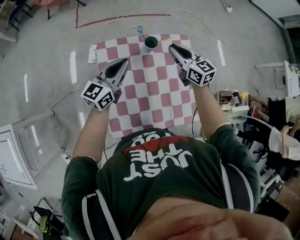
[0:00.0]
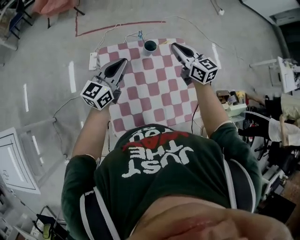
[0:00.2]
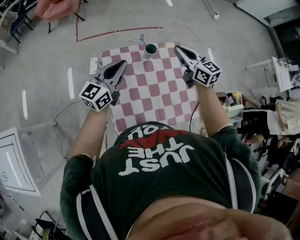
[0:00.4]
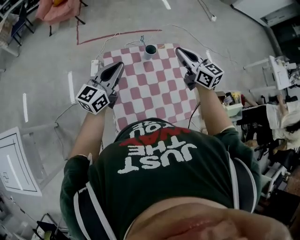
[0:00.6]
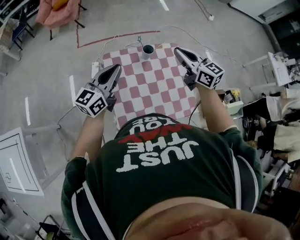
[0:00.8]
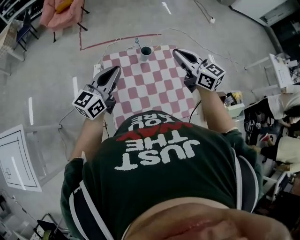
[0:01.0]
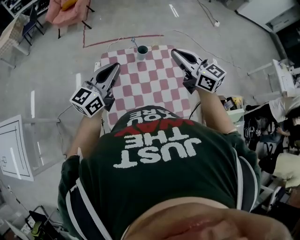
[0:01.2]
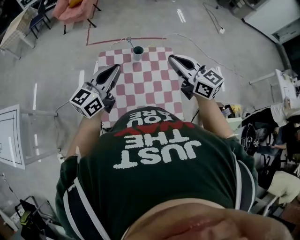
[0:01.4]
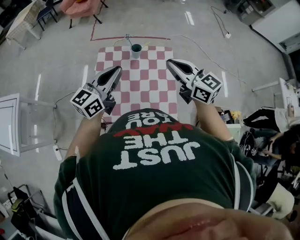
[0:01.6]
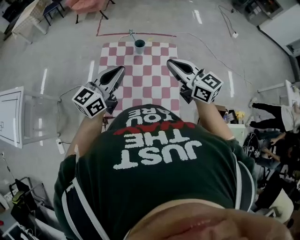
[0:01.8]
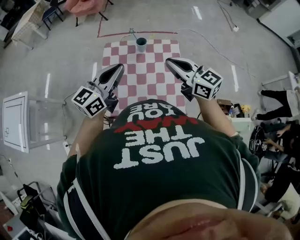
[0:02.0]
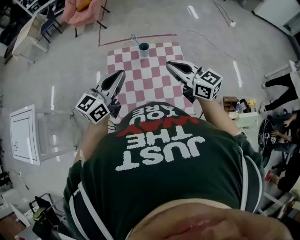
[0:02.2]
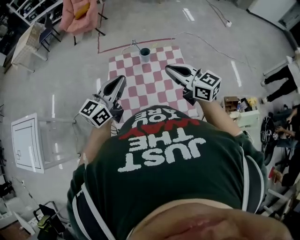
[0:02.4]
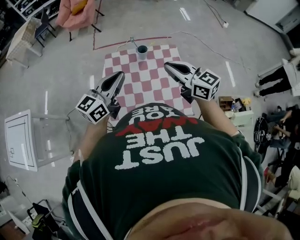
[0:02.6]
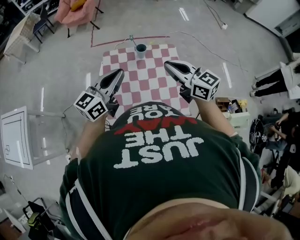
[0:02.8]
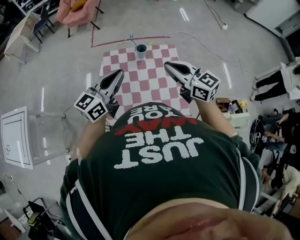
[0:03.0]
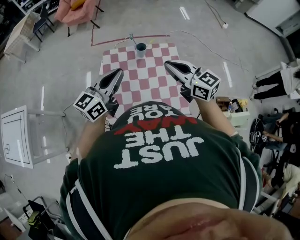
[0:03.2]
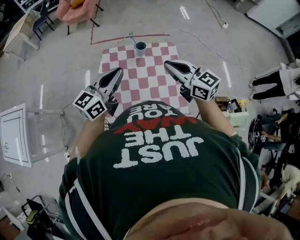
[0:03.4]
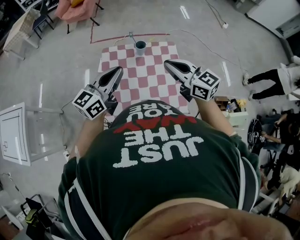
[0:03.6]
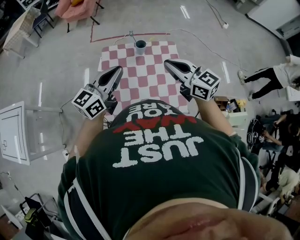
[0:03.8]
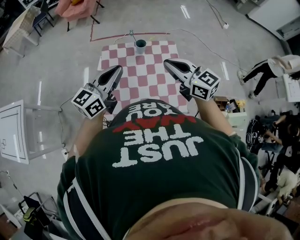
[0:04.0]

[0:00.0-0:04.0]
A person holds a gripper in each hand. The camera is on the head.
0:00.0 to 0:01.4: Both grippers move upward and backward, approximately 30 cm.
0:01.4 to 0:02.6: The right gripper shifts by about 5 cm.
0:02.6 to 0:04.0: Both grippers stay about where they are.

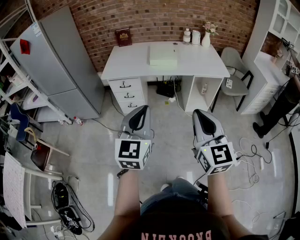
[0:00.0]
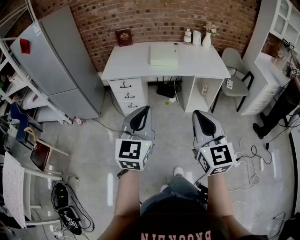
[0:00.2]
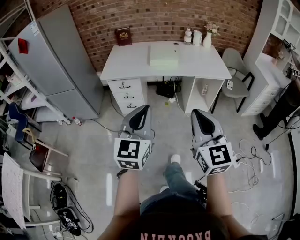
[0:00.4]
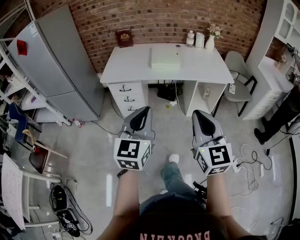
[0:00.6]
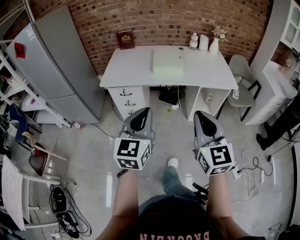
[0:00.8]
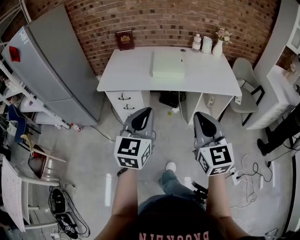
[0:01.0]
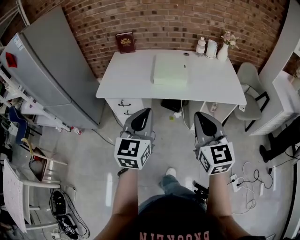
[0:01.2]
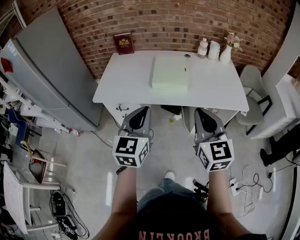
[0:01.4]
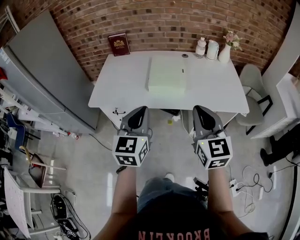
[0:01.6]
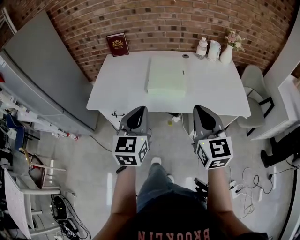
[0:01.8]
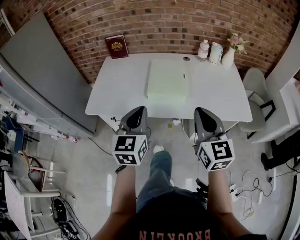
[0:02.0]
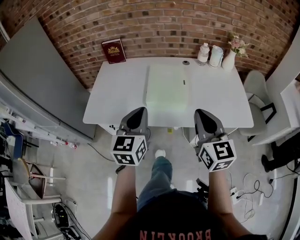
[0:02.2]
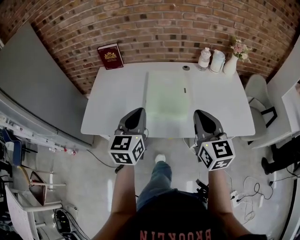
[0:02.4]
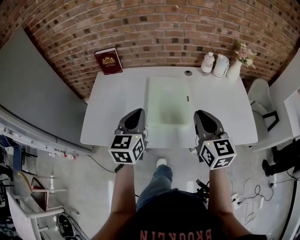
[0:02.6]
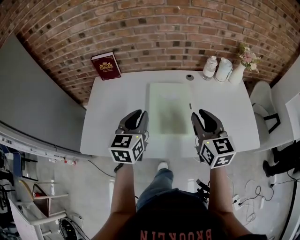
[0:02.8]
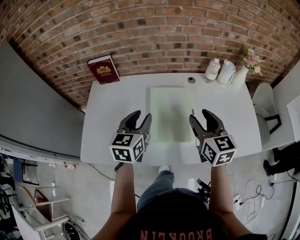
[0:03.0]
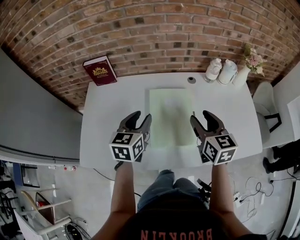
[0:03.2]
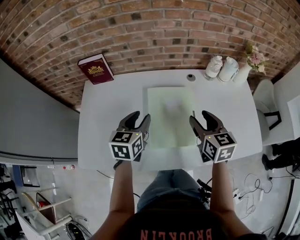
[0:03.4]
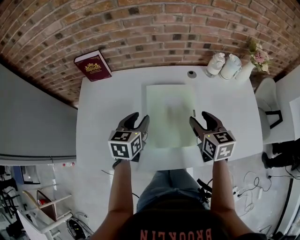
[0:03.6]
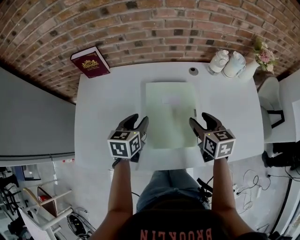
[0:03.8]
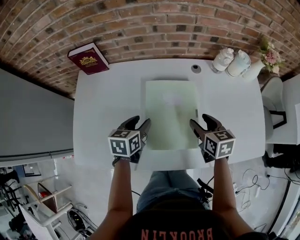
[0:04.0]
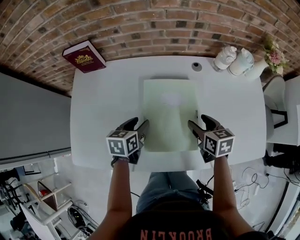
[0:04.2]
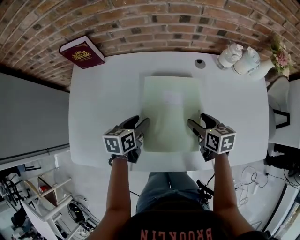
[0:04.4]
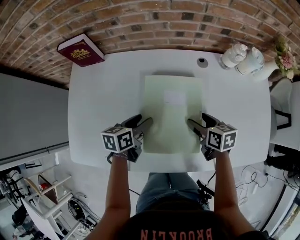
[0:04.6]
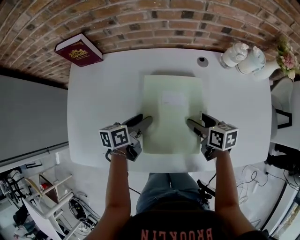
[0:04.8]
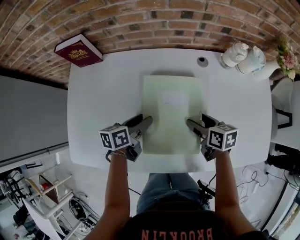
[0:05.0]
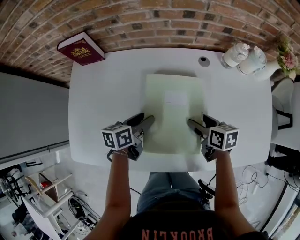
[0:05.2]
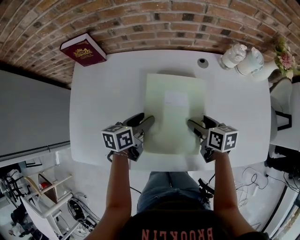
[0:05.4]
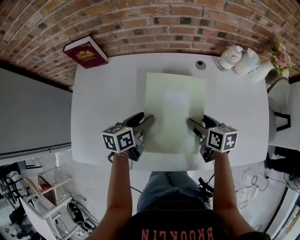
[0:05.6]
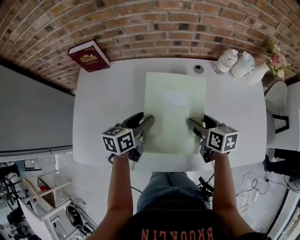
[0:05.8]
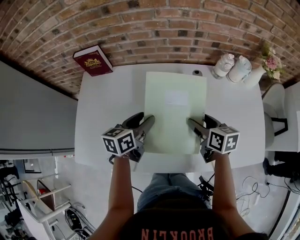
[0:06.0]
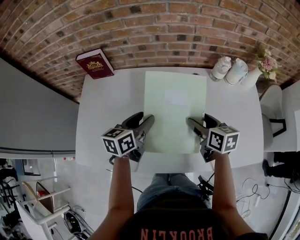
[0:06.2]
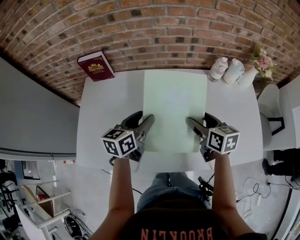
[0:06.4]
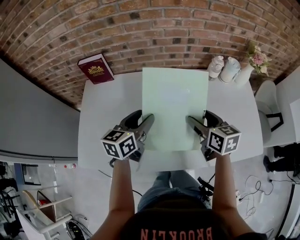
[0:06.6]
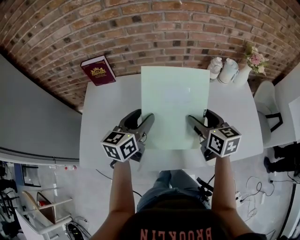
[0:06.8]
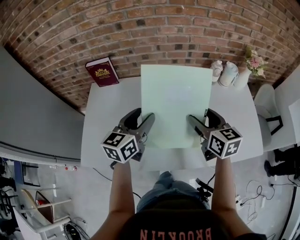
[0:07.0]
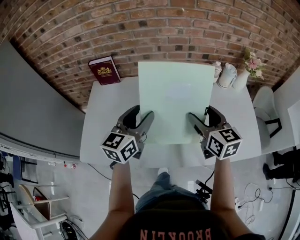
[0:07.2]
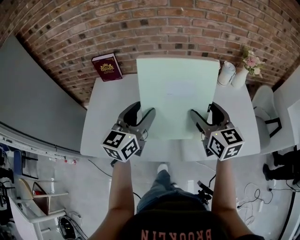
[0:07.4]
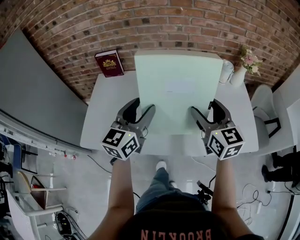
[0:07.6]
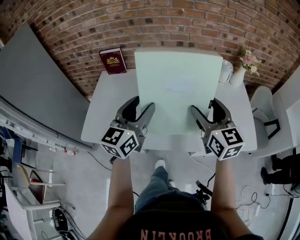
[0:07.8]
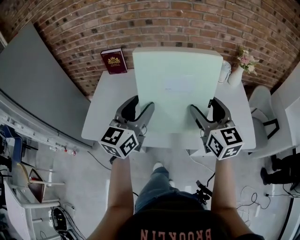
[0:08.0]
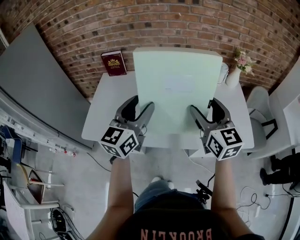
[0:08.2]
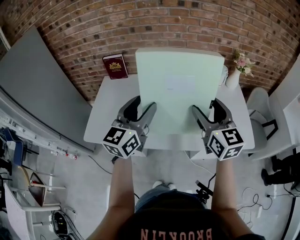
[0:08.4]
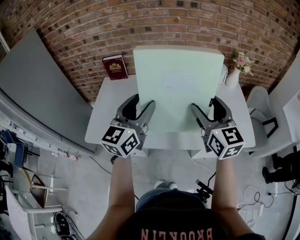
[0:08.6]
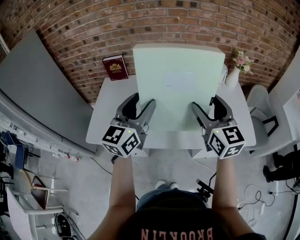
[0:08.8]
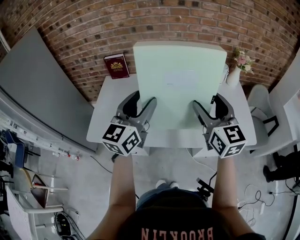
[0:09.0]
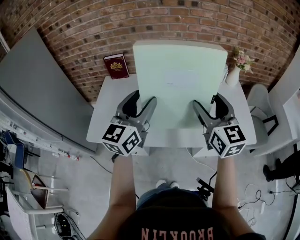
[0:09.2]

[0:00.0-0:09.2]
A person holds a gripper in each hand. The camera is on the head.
0:00.0 to 0:01.6: Both grippers move forward, about 40 cm.
0:01.6 to 0:03.0: Both grippers travel together forward, approximately 35 cm. The right gripper opens its fingers; the left gripper opens up.
0:03.0 to 0:04.6: The two grippers go approximately 20 cm downward. The right gripper turns by roughly 40 degrees, and opens; the left gripper swivels some 40 degrees.
0:04.6 to 0:06.2: Both grippers move upward, about 10 cm.
0:06.2 to 0:07.6: Both grippers move upward and backward, approximately 20 cm. The right gripper rotates about 40 degrees, while the left gripper swivels roughly 40 degrees.
0:07.6 to 0:09.2: The left gripper shifts some 10 cm upward and backward. The right gripper shifts about 10 cm backward and upward.

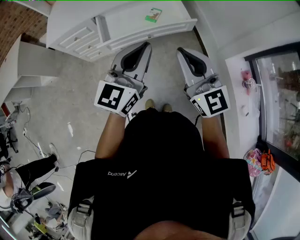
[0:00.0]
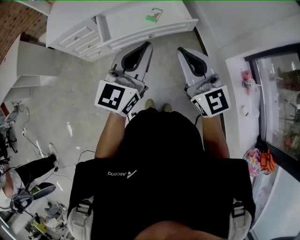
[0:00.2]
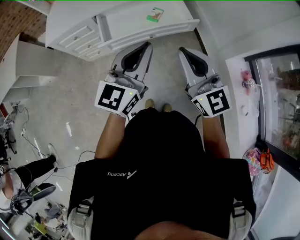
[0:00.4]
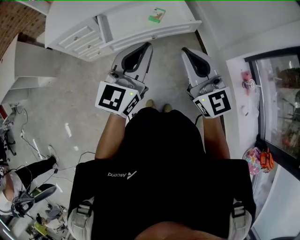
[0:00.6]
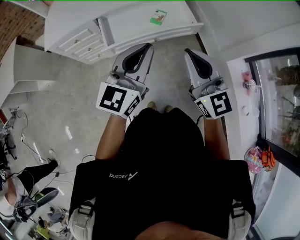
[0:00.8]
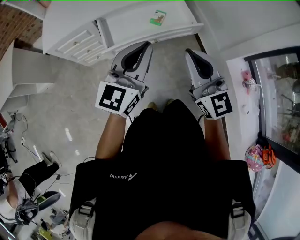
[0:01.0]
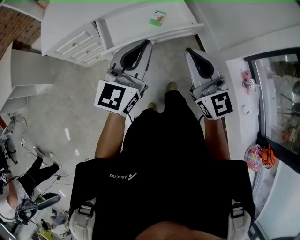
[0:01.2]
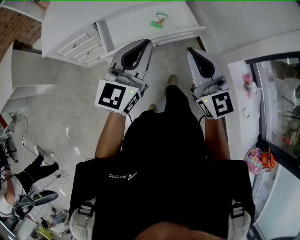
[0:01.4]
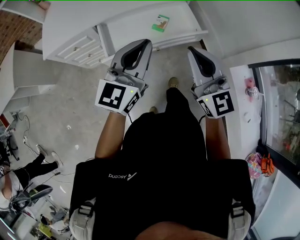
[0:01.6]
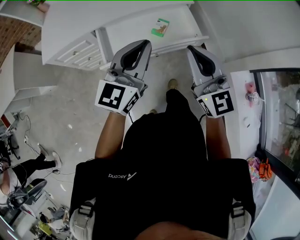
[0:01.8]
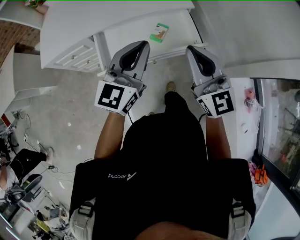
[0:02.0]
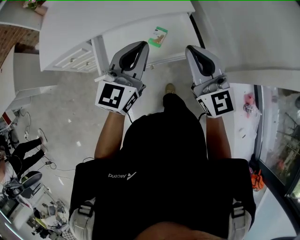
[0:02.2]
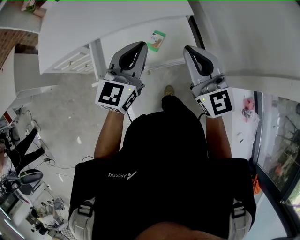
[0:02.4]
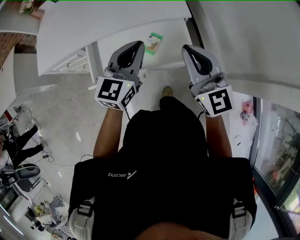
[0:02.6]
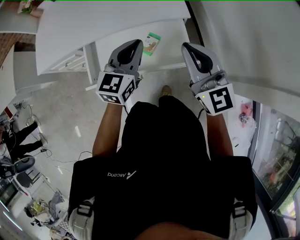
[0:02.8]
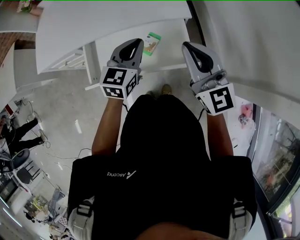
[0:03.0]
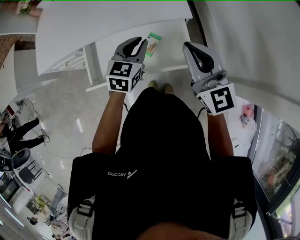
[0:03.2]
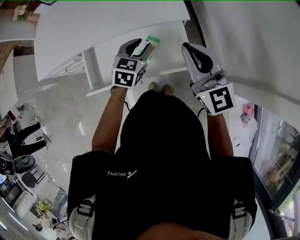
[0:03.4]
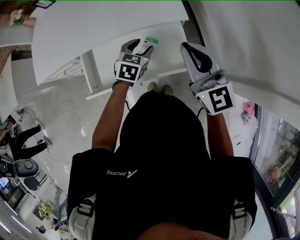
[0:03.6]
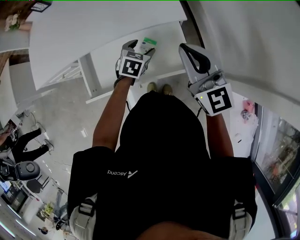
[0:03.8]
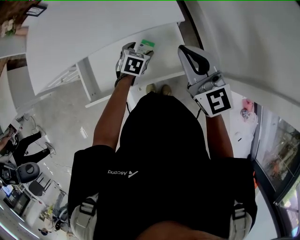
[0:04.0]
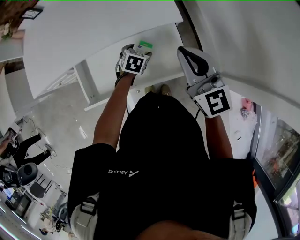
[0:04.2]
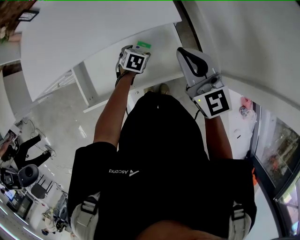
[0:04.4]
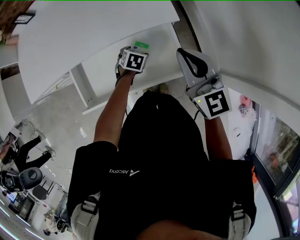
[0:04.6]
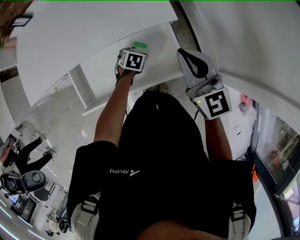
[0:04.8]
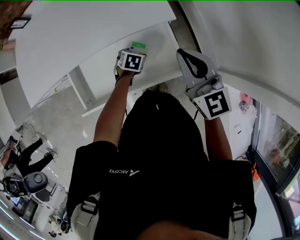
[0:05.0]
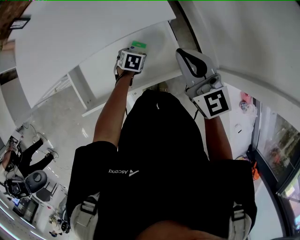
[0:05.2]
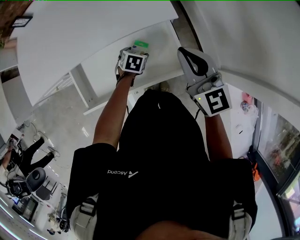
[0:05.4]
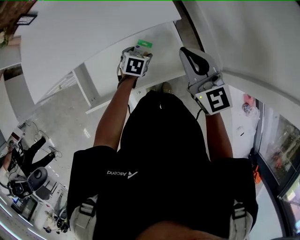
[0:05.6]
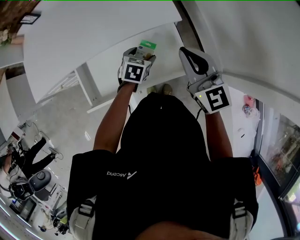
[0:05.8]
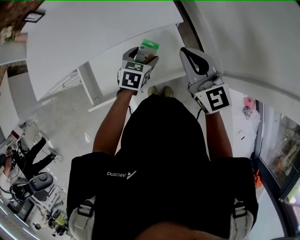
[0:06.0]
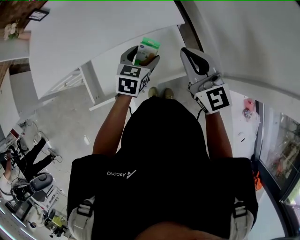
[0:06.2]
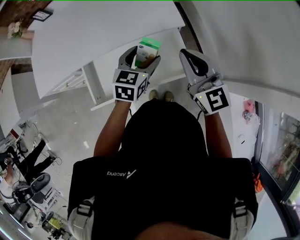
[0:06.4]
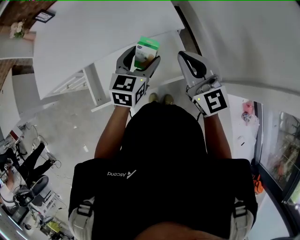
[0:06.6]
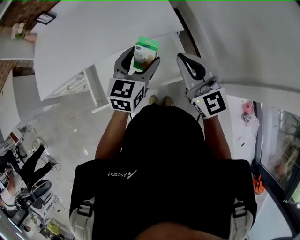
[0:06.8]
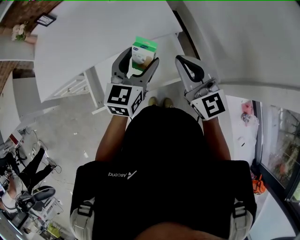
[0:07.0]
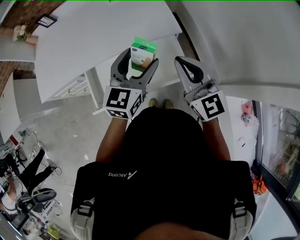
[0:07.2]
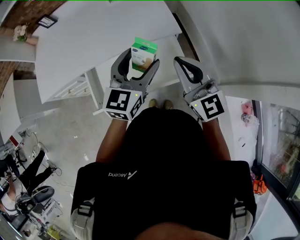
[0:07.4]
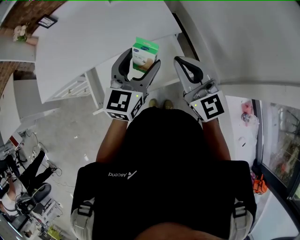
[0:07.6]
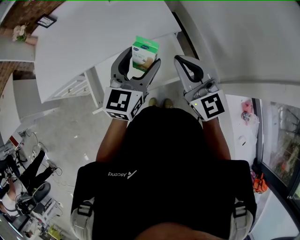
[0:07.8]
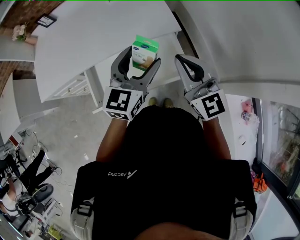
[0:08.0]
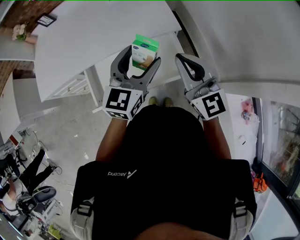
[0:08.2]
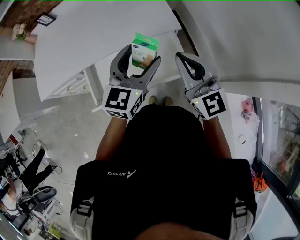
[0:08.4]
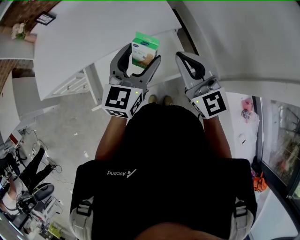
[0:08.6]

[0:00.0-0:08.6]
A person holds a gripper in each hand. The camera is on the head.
0:00.0 to 0:01.4: Both grippers move forward and to the left, some 10 cm.
0:01.4 to 0:02.8: The left gripper travels forward by some 30 cm, and changes its angle by roughly 20 degrees. Meanwhile the right gripper goes about 30 cm forward and to the right.
0:02.8 to 0:04.4: The right gripper heads forward and downward, covering approximately 10 cm; the left gripper is displaced downward by roughly 30 cm, angles its fingers downward, by approximately 50 degrees, and opens its fingers.
0:04.4 to 0:05.8: The left gripper shifts some 5 cm upward.
0:05.8 to 0:07.2: The right gripper is displaced upward and backward by about 10 cm, while the left gripper heads upward, covering approximately 30 cm, and angles its fingers upward, by about 40 degrees.
0:07.2 to 0:08.6: There are only small adjustments of the grippers.

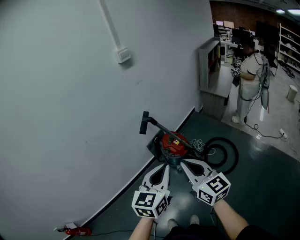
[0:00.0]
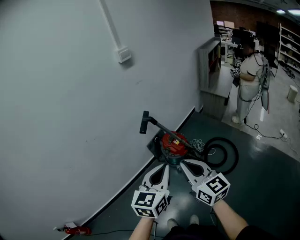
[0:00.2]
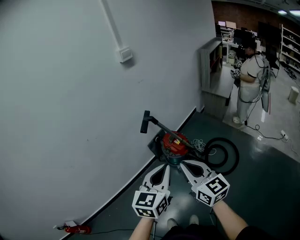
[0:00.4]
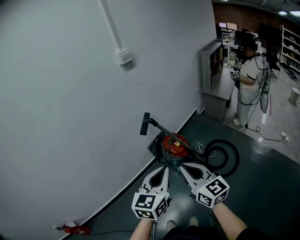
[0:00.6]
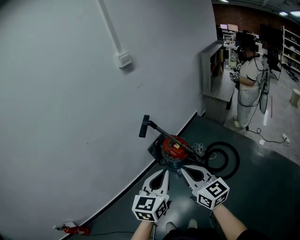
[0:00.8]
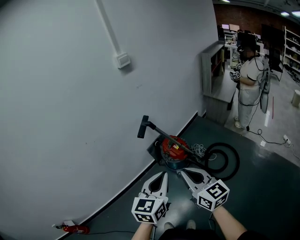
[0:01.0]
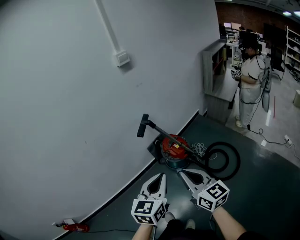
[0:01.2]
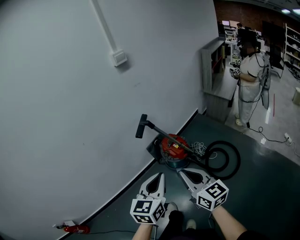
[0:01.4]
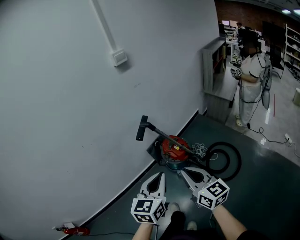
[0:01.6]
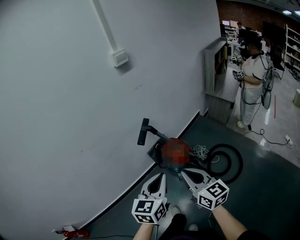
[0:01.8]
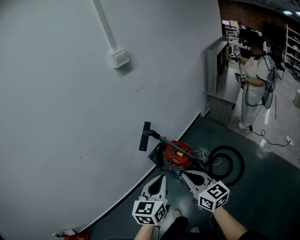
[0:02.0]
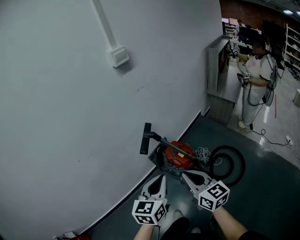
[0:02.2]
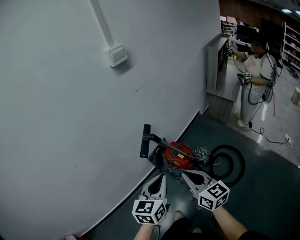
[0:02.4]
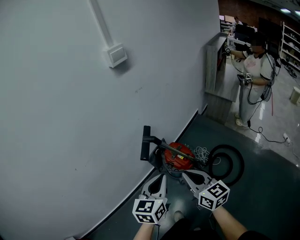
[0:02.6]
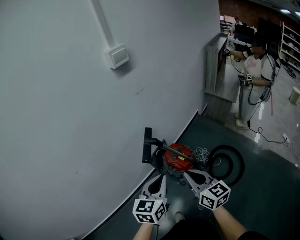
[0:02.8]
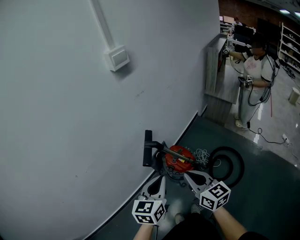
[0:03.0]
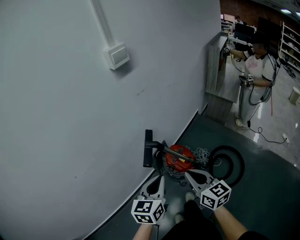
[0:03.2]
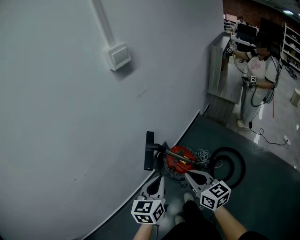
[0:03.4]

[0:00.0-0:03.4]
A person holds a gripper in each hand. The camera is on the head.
0:00.0 to 0:01.6: The left gripper ends up approximately 5 cm from where it was. Meanwhile the right gripper moves downward, about 5 cm.
0:01.6 to 0:03.4: The grippers both shift forward by approximately 25 cm.
